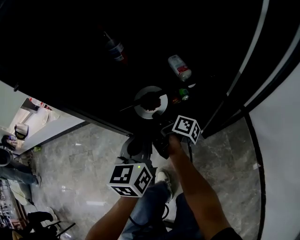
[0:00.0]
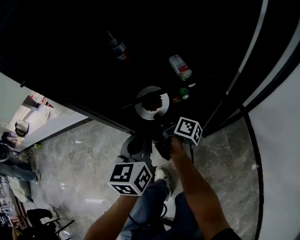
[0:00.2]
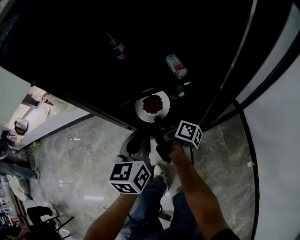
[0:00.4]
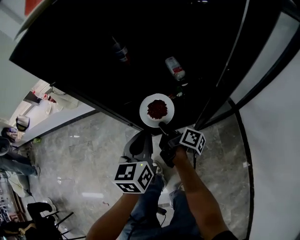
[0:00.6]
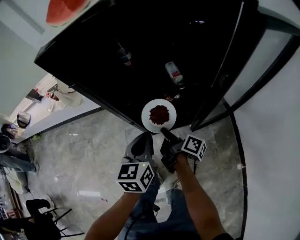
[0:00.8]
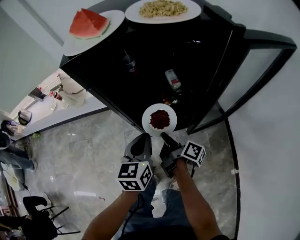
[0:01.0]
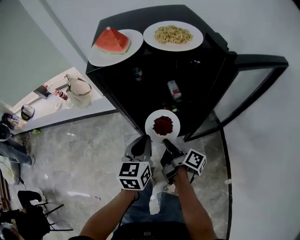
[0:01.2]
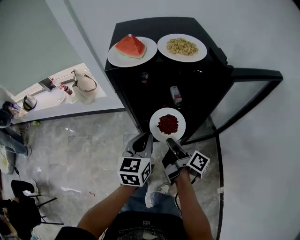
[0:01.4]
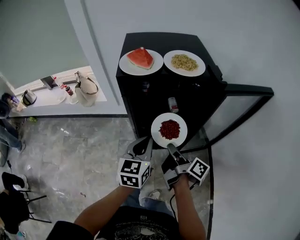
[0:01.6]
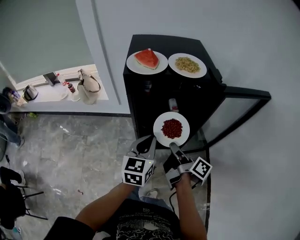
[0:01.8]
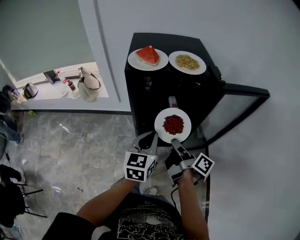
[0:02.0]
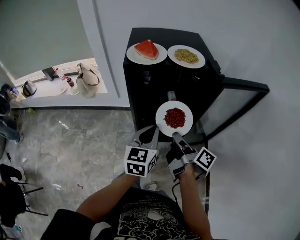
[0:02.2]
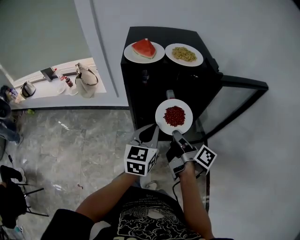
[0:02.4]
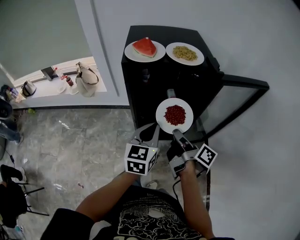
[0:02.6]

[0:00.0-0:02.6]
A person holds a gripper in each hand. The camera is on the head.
0:00.0 to 0:01.2: Both grippers travel together upward and backward, approximately 25 cm.
0:01.2 to 0:02.6: The right gripper is displaced upward by roughly 15 cm. Meanwhile the left gripper is displaced upward by about 10 cm.

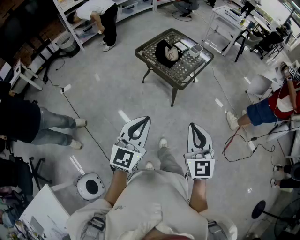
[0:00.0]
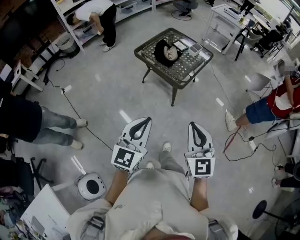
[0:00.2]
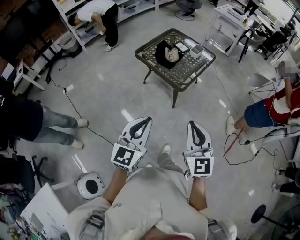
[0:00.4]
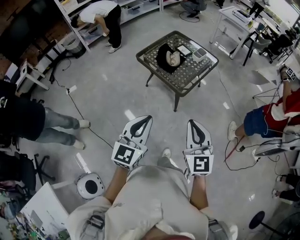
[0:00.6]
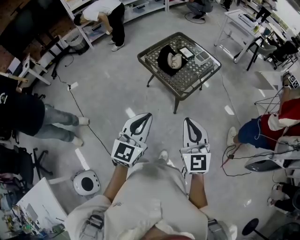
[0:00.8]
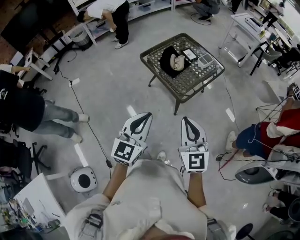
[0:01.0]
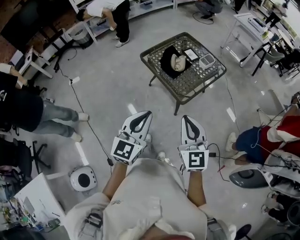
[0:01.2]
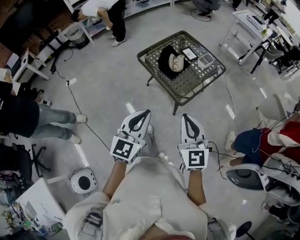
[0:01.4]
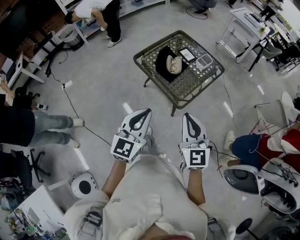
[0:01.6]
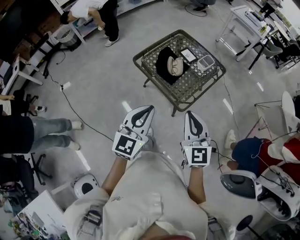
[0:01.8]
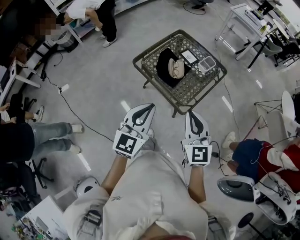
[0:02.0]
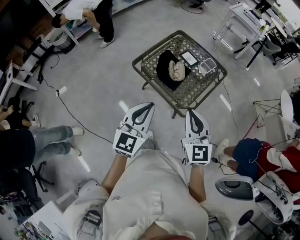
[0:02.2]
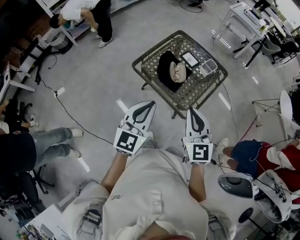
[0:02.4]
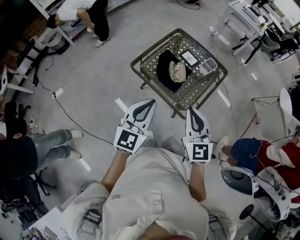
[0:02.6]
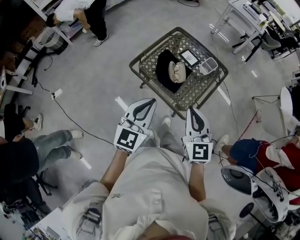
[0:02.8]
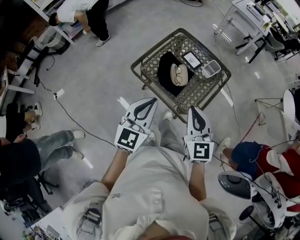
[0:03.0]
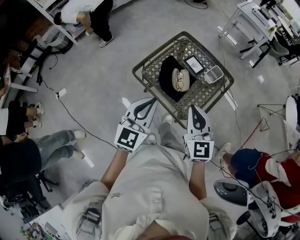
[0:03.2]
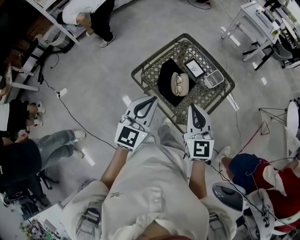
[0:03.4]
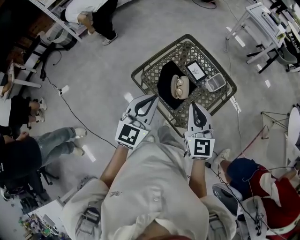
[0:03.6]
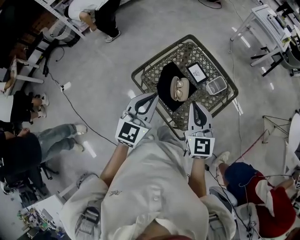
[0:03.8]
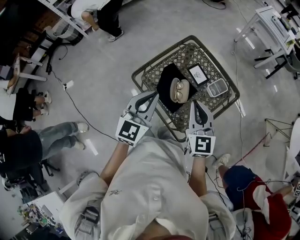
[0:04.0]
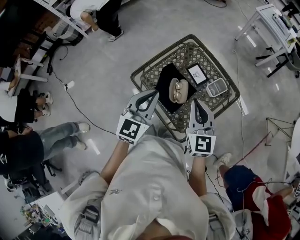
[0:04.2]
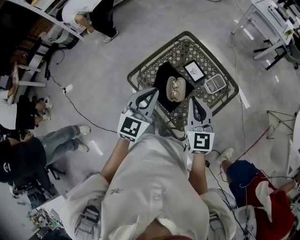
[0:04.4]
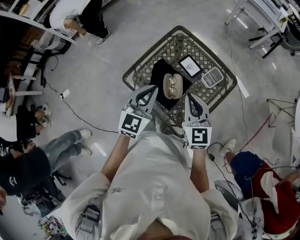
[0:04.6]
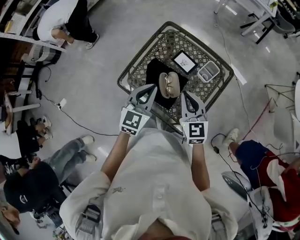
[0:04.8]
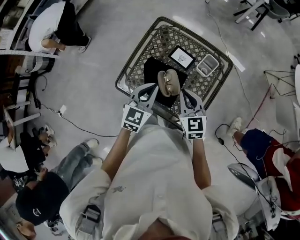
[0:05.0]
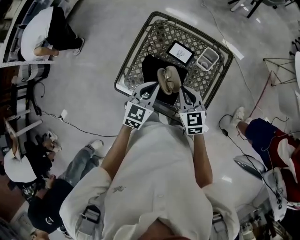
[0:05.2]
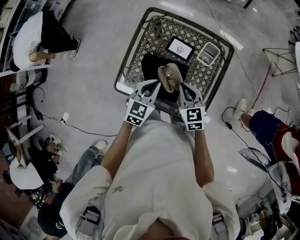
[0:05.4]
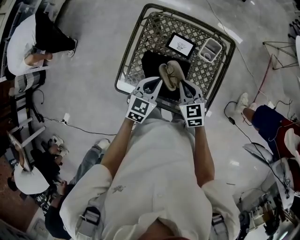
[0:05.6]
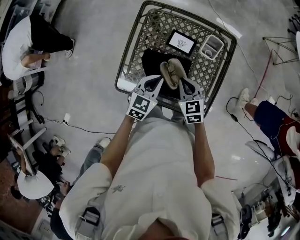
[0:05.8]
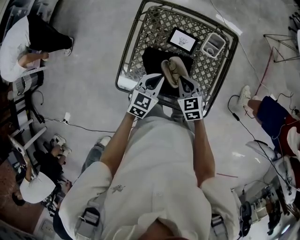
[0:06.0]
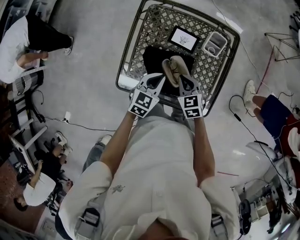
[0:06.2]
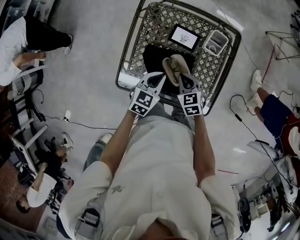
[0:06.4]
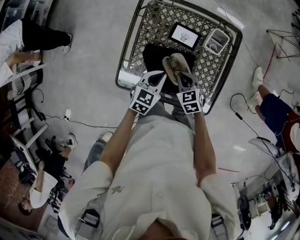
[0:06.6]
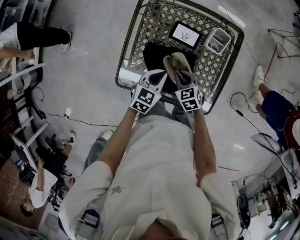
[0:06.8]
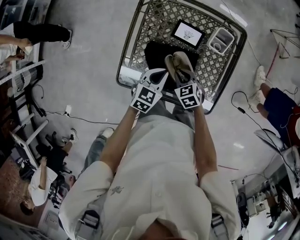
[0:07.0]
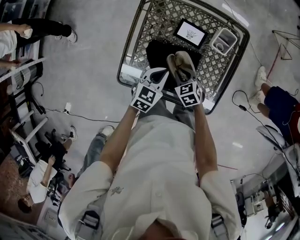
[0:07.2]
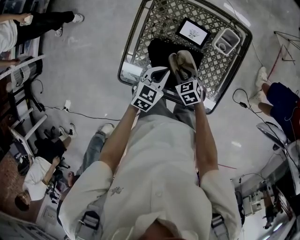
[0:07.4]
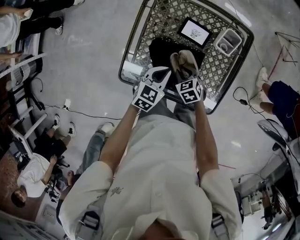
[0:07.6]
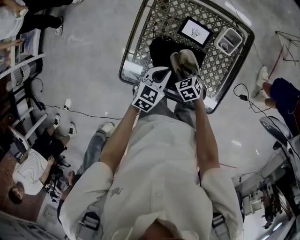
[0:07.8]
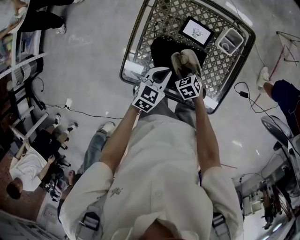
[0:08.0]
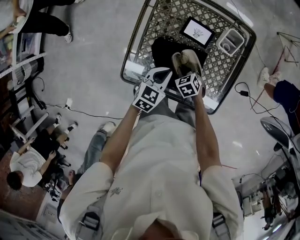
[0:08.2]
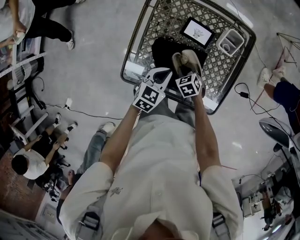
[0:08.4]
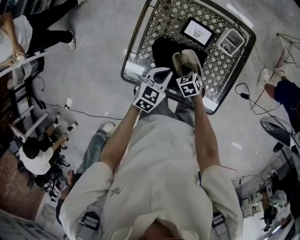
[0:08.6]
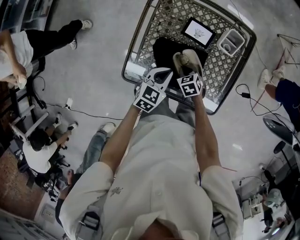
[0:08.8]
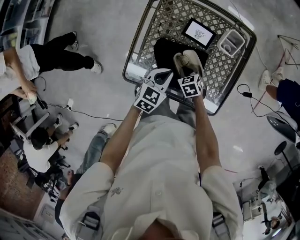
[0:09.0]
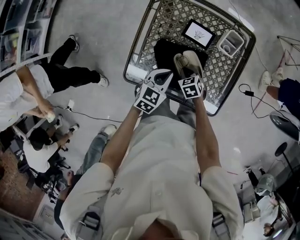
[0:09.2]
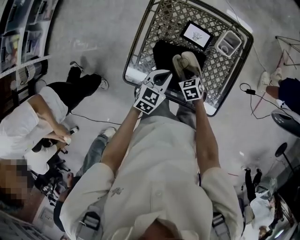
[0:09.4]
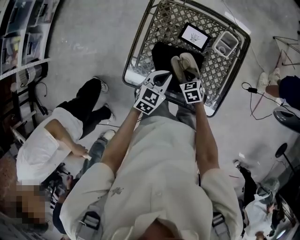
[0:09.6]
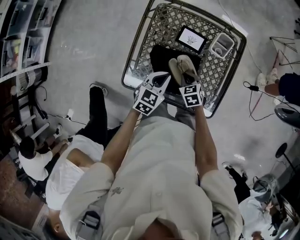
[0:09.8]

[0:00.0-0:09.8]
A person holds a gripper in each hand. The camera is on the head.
0:00.0 to 0:01.4: Both grippers move forward, approximately 20 cm.
0:01.4 to 0:02.8: The grippers both shift forward and to the left by about 25 cm.
0:02.8 to 0:04.2: Both grippers move forward, roughly 20 cm.
0:04.2 to 0:05.6: The grippers both shift downward by some 20 cm. The right gripper swivels roughly 30 degrees. The left gripper swivels approximately 40 degrees.
0:05.6 to 0:07.0: The left gripper moves downward, some 10 cm, while the right gripper heads downward, covering approximately 15 cm, and rotates some 20 degrees.
0:07.0 to 0:08.4: The right gripper travels downward by approximately 5 cm.
0:08.4 to 0:09.8: The right gripper is displaced upward by about 5 cm.

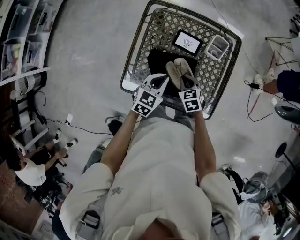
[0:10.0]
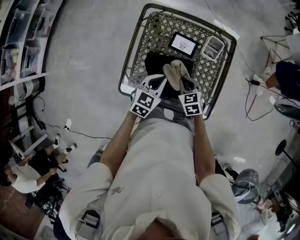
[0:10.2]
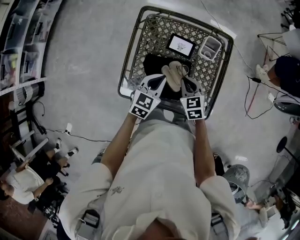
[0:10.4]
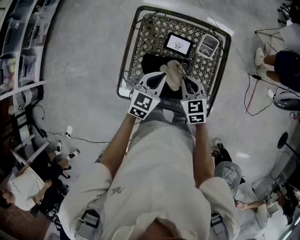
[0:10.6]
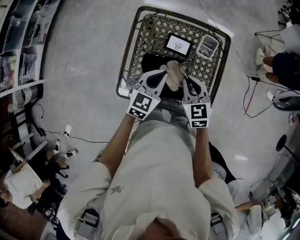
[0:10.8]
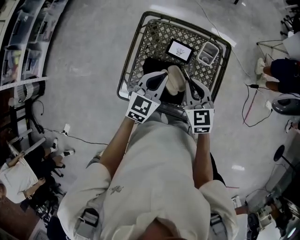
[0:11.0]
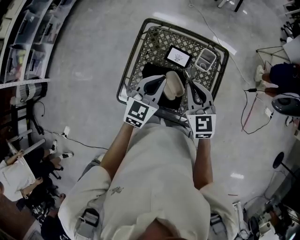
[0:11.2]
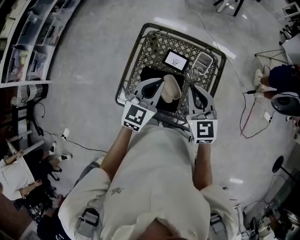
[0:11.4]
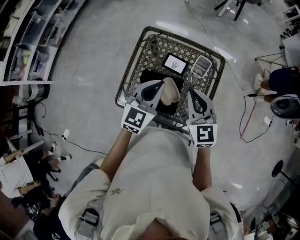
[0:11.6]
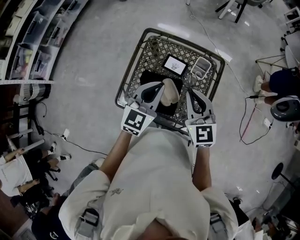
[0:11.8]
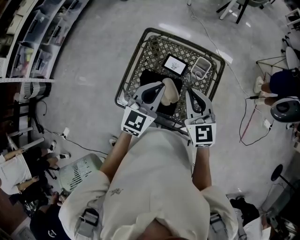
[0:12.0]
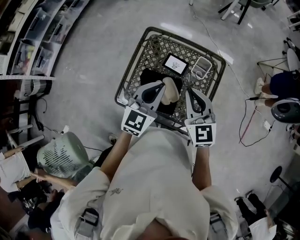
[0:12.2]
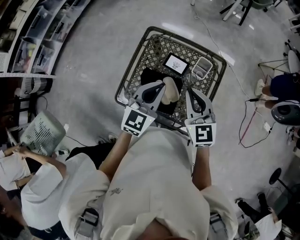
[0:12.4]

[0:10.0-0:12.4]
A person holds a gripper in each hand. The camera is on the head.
0:10.0 to 0:11.2: The left gripper moves upward, approximately 15 cm, while the right gripper travels upward by roughly 25 cm, and points its fingers about 30 degrees further upward.
0:11.2 to 0:12.4: Both grippers travel together upward, roughly 5 cm.

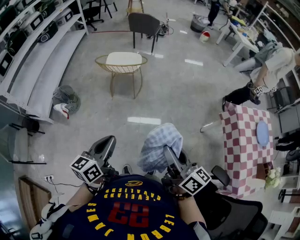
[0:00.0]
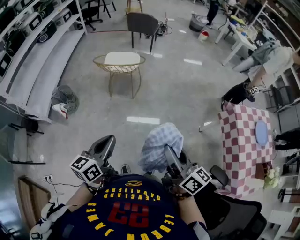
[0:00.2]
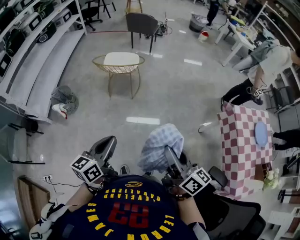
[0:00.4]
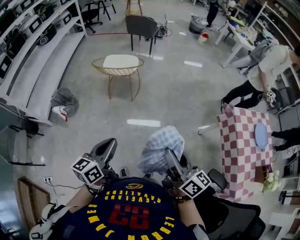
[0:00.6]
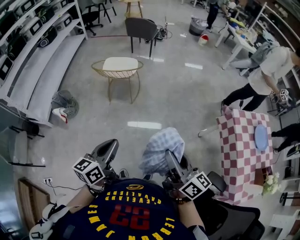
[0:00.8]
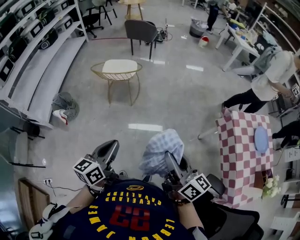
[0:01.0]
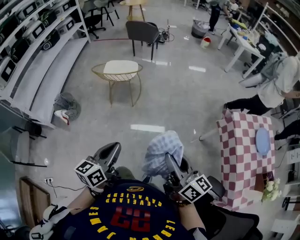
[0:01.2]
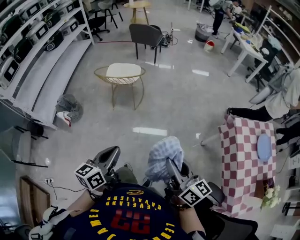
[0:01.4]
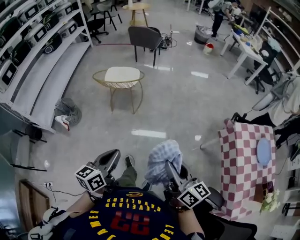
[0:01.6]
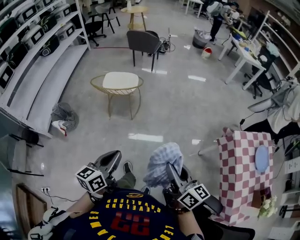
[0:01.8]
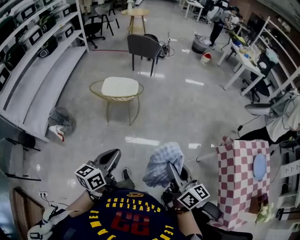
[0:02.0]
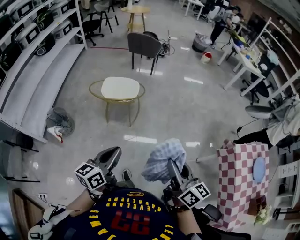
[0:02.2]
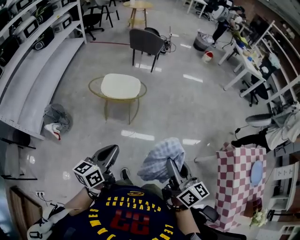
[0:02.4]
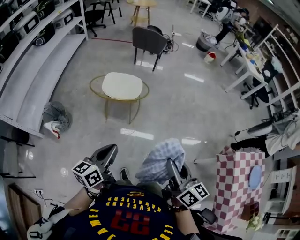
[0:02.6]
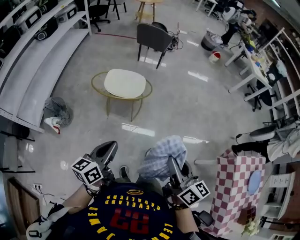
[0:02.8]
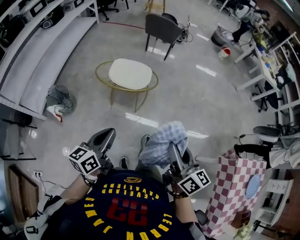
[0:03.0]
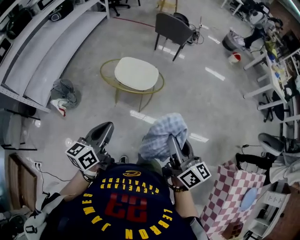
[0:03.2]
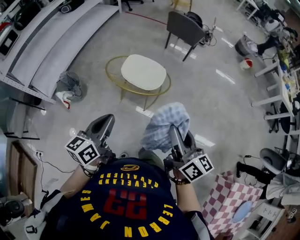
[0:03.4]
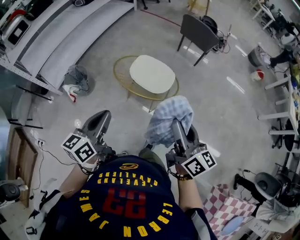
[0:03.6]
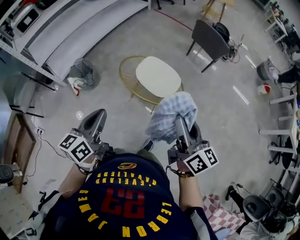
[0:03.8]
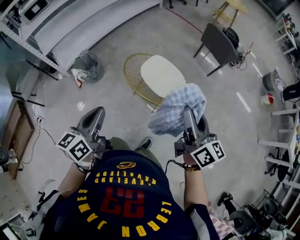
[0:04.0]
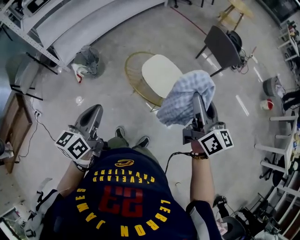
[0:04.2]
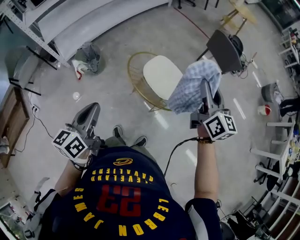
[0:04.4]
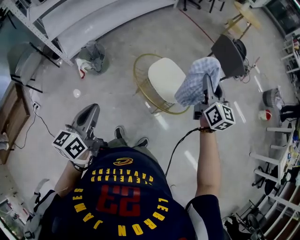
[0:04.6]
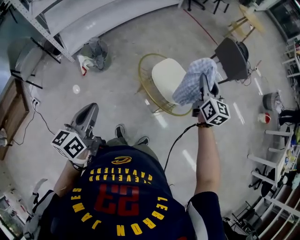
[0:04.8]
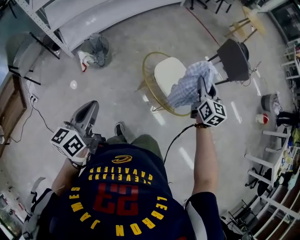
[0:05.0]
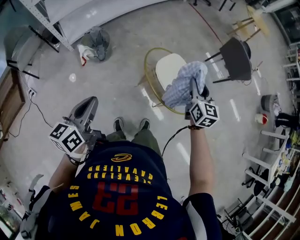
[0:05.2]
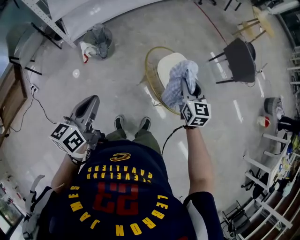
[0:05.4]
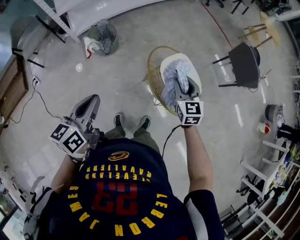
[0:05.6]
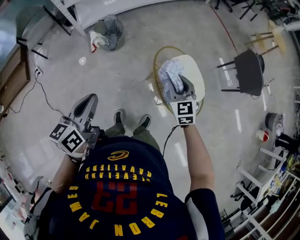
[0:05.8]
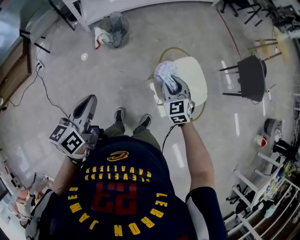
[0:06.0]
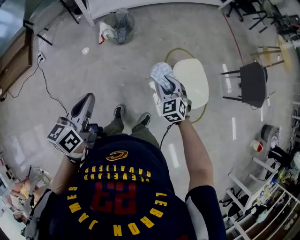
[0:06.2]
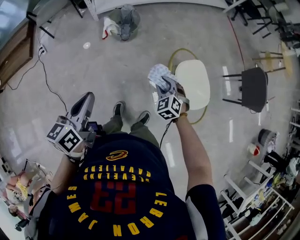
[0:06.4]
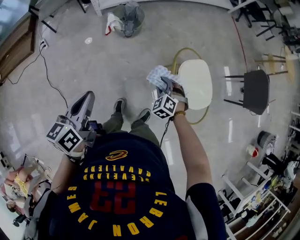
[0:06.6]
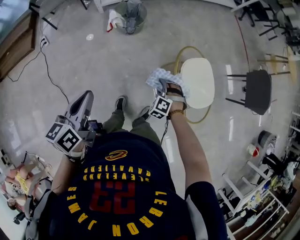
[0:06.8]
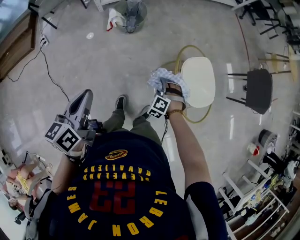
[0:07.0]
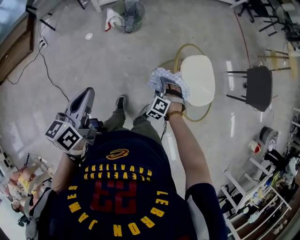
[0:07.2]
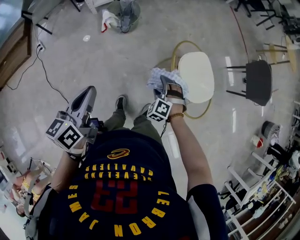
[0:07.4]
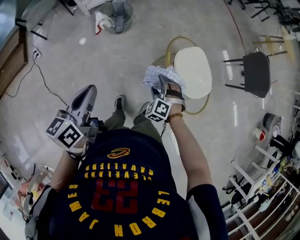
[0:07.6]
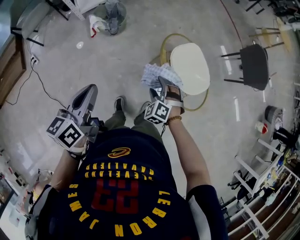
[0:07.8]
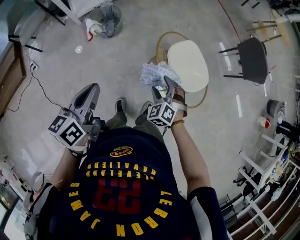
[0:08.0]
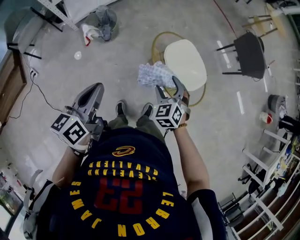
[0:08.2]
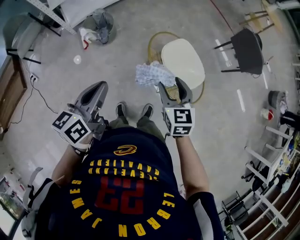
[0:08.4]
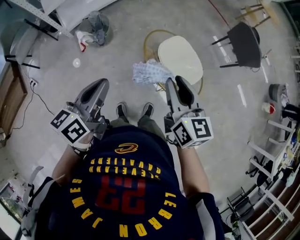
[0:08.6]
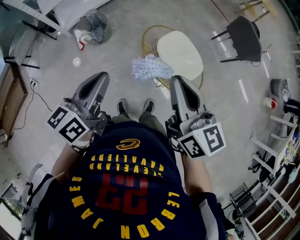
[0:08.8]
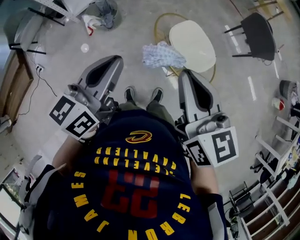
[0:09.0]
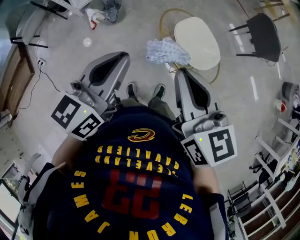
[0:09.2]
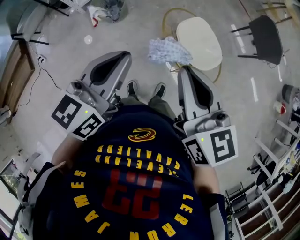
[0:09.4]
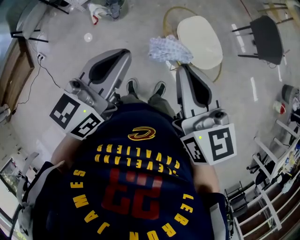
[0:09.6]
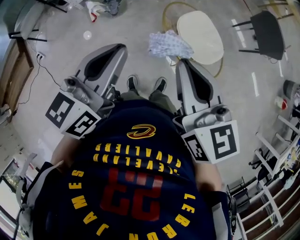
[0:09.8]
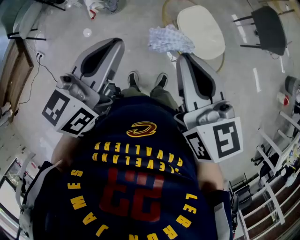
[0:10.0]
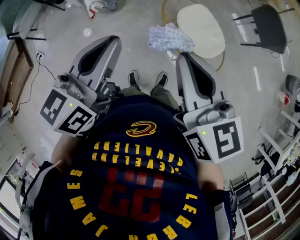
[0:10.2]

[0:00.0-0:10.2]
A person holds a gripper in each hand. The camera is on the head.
0:00.0 to 0:01.4: The two grippers go some 10 cm to the right.
0:01.4 to 0:03.0: Both grippers move forward and to the left, approximately 35 cm.
0:03.0 to 0:04.4: The right gripper ends up roughly 50 cm from where it was, and swivels about 30 degrees, while the left gripper ends up approximately 15 cm from where it was, and rotates roughly 40 degrees.
0:04.4 to 0:05.8: The right gripper shifts roughly 35 cm to the left and downward, and turns by about 50 degrees. The left gripper goes roughly 15 cm to the left and downward.
0:05.8 to 0:07.2: The right gripper heads downward and to the left, covering approximately 25 cm, rolls counterclockwise, seen from behind, by some 50 degrees, and opens up. The left gripper heads to the left, covering some 10 cm.
0:07.2 to 0:08.8: The right gripper travels upward by about 40 cm, rotates around the line of its fingers by some 90 degrees, clockwise from behind, and closes its fingers, while the left gripper heads to the right, forward and upward, covering approximately 20 cm, and rotates roughly 30 degrees.
0:08.8 to 0:10.2: The right gripper goes roughly 5 cm to the left.
